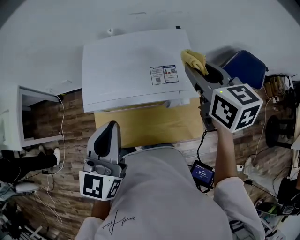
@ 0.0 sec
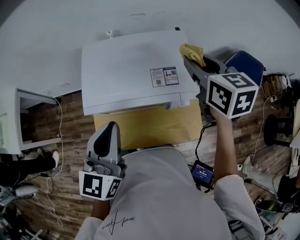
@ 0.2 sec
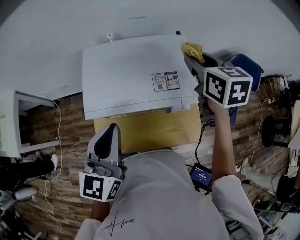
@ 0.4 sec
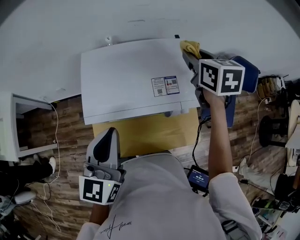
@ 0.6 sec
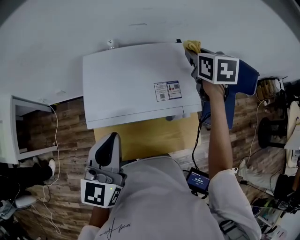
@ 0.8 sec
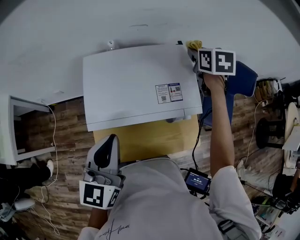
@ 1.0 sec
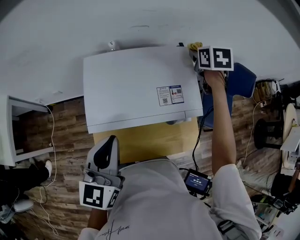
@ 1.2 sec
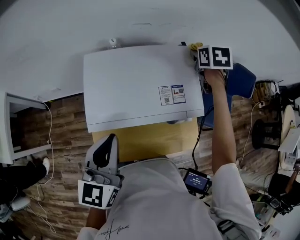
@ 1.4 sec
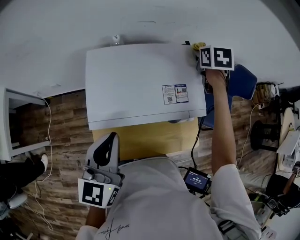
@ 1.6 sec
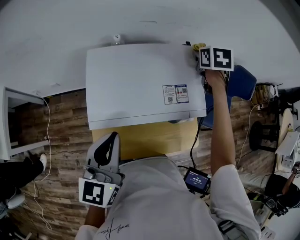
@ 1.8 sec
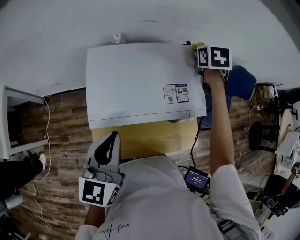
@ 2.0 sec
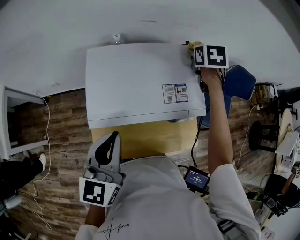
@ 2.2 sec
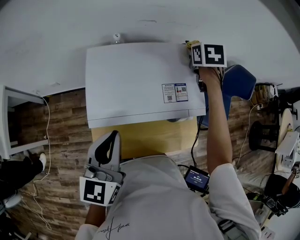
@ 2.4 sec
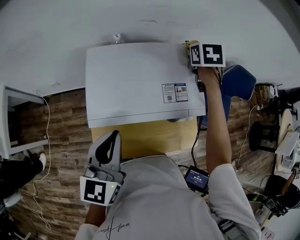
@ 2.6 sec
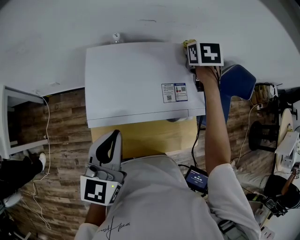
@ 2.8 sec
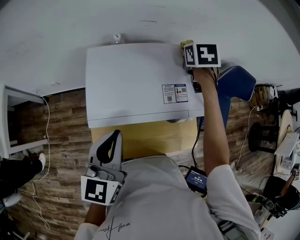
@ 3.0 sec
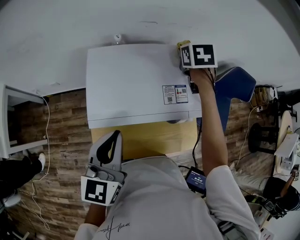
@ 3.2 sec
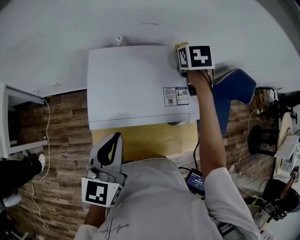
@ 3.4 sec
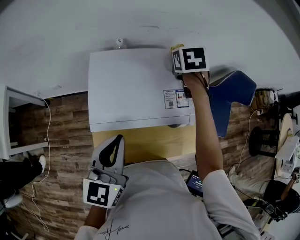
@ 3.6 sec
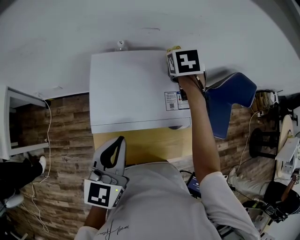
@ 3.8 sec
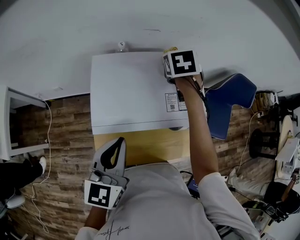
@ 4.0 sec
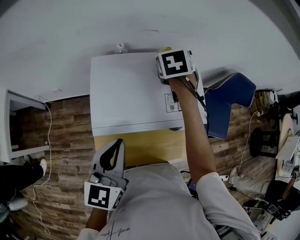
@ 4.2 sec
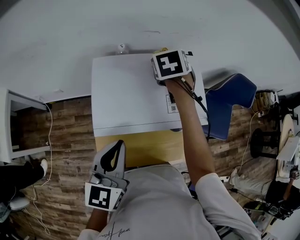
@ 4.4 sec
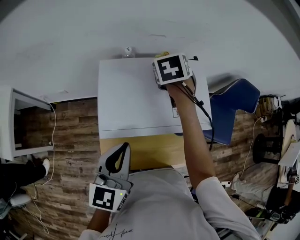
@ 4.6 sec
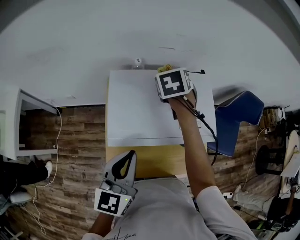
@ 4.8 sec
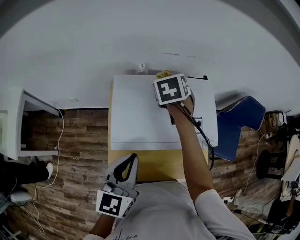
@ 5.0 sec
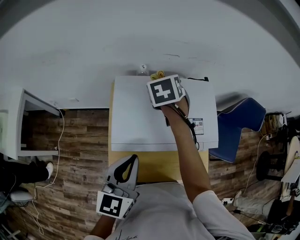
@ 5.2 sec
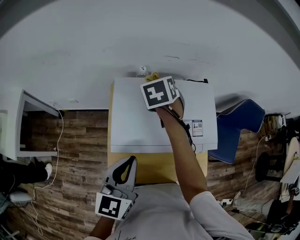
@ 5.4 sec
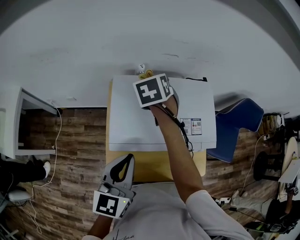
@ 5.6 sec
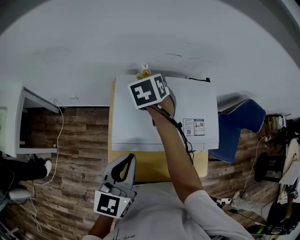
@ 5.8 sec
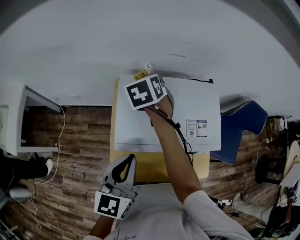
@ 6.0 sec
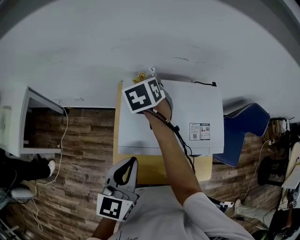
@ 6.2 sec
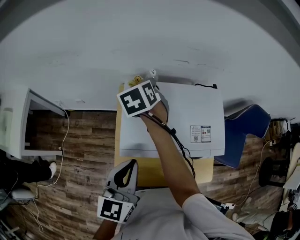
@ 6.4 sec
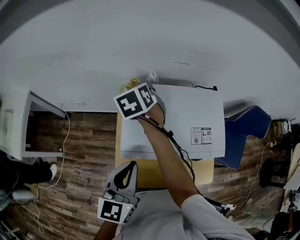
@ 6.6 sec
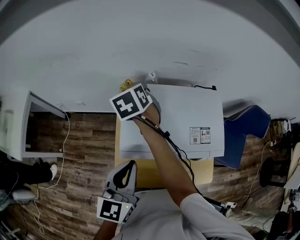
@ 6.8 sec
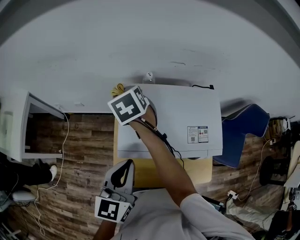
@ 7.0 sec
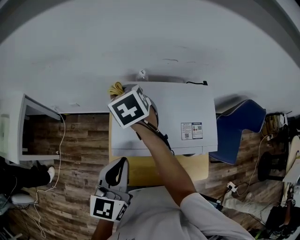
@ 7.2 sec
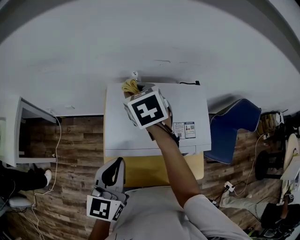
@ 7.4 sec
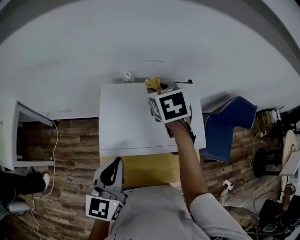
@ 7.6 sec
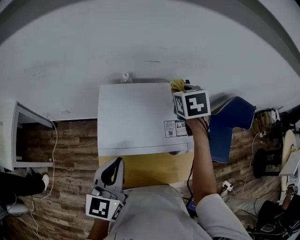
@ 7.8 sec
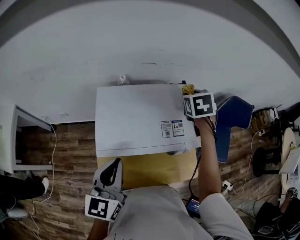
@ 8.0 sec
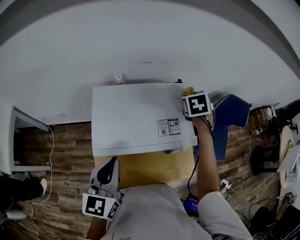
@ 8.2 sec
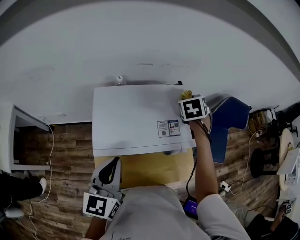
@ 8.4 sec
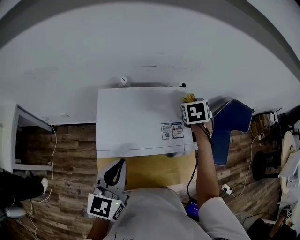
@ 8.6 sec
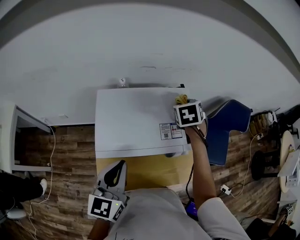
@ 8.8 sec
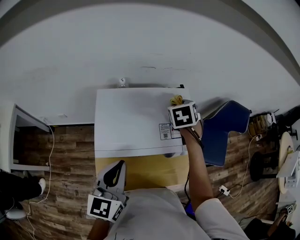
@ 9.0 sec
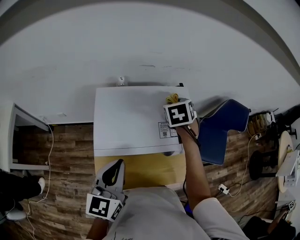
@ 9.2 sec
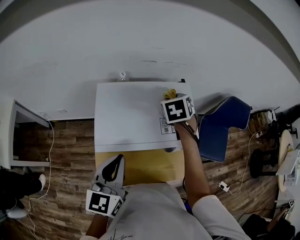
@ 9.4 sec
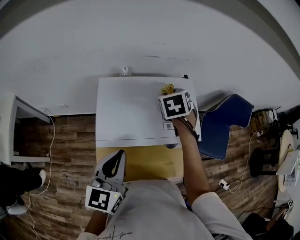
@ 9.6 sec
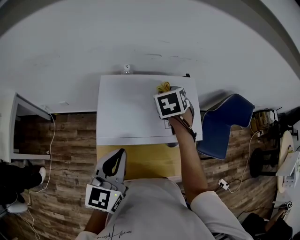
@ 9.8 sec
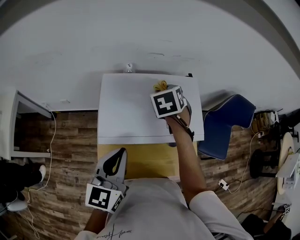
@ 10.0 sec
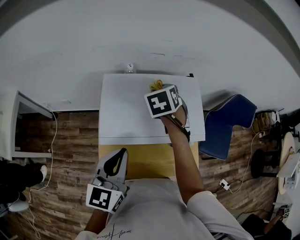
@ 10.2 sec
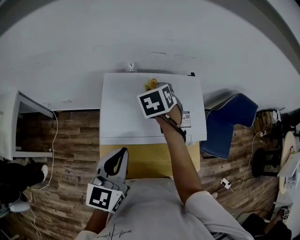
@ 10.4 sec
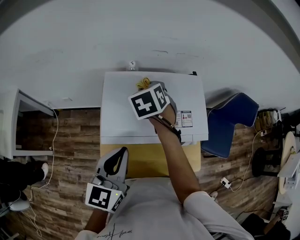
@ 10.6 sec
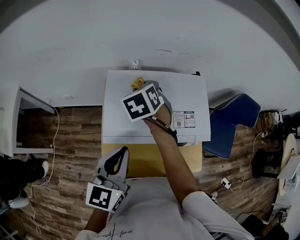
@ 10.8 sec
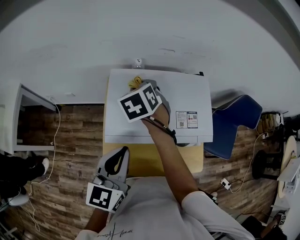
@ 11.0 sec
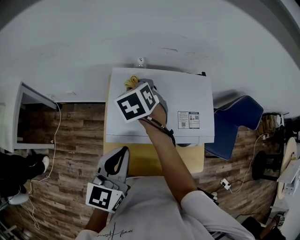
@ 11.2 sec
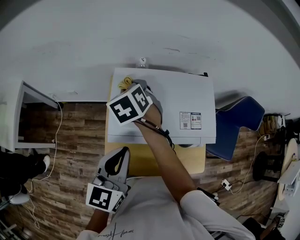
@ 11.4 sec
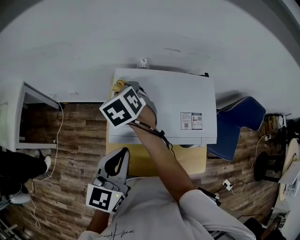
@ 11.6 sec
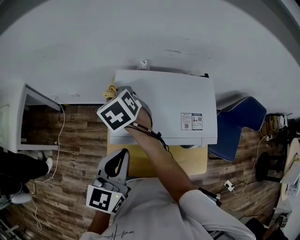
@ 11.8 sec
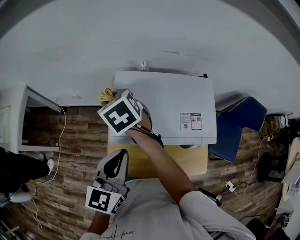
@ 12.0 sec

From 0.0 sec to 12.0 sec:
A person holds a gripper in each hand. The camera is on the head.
From 0.0 sec to 1.6 sec: The right gripper heads forward and downward, covering roughly 20 cm, and rotates approximately 30 degrees; the left gripper is displaced to the left by roughly 5 cm.
From 1.6 sec to 3.0 sec: The right gripper is displaced to the left by roughly 5 cm.
From 3.0 sec to 4.4 sec: The right gripper moves to the left, about 10 cm.
From 4.4 sec to 6.0 sec: The right gripper moves to the left, some 15 cm.
From 6.0 sec to 7.6 sec: The right gripper shifts approximately 15 cm to the right and upward.
From 7.6 sec to 9.0 sec: The right gripper heads to the right, covering about 15 cm, and rotates some 20 degrees.
From 9.0 sec to 10.4 sec: The right gripper heads to the left, covering roughly 15 cm.
From 10.4 sec to 12.0 sec: The right gripper shifts about 20 cm to the left, and rotates some 30 degrees.

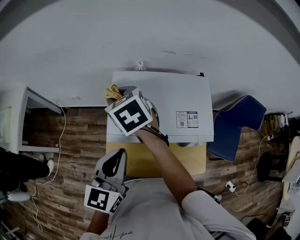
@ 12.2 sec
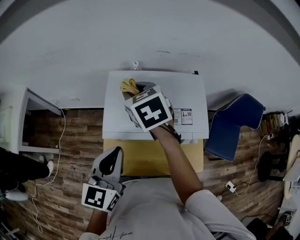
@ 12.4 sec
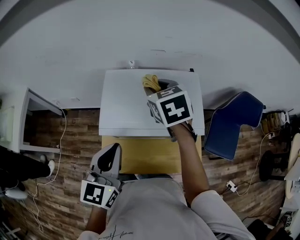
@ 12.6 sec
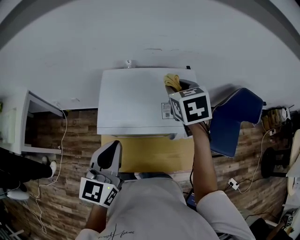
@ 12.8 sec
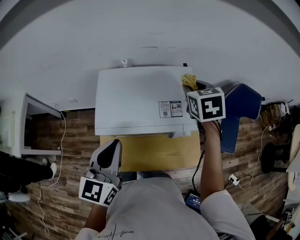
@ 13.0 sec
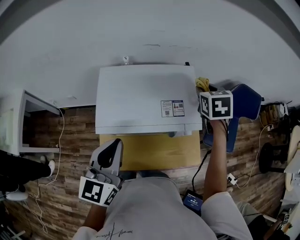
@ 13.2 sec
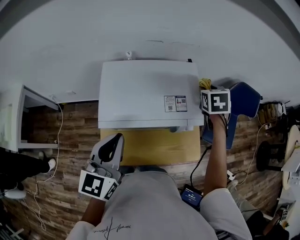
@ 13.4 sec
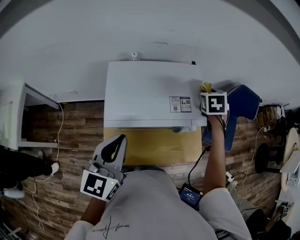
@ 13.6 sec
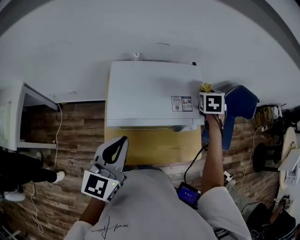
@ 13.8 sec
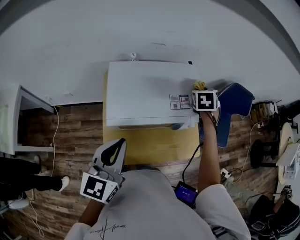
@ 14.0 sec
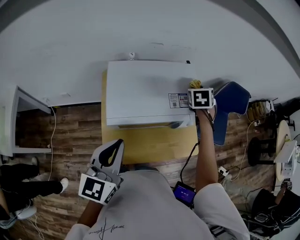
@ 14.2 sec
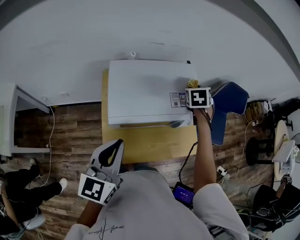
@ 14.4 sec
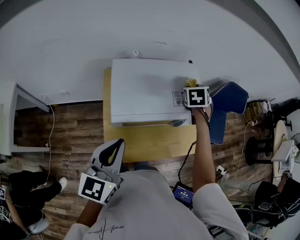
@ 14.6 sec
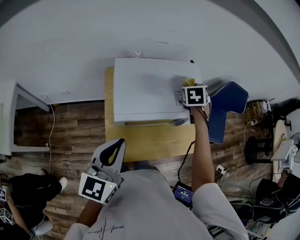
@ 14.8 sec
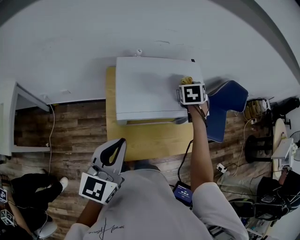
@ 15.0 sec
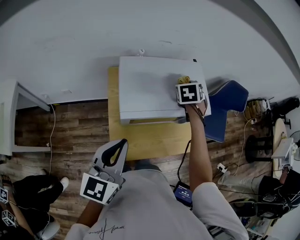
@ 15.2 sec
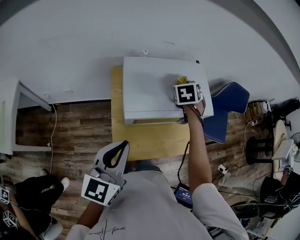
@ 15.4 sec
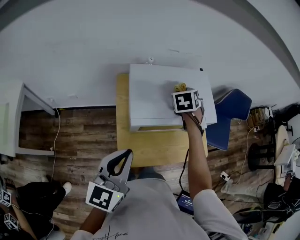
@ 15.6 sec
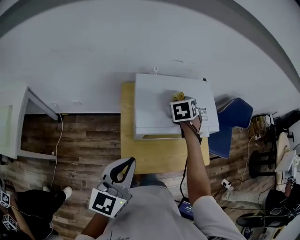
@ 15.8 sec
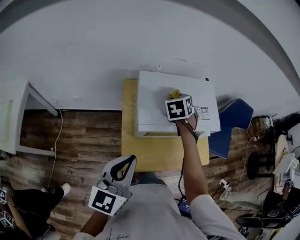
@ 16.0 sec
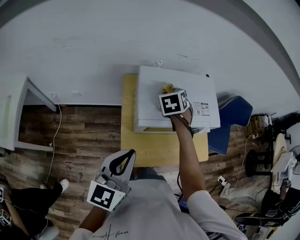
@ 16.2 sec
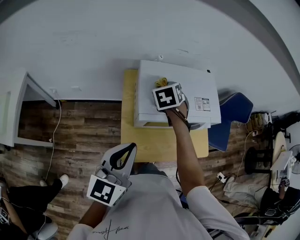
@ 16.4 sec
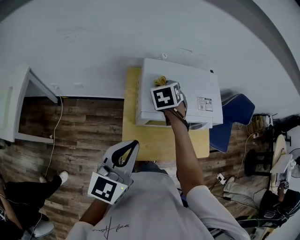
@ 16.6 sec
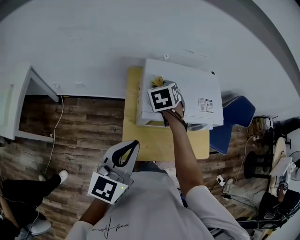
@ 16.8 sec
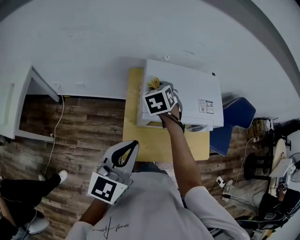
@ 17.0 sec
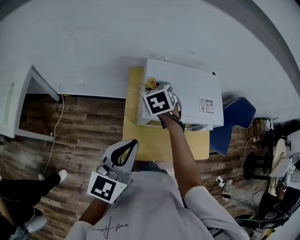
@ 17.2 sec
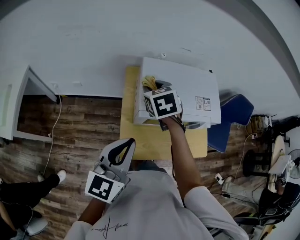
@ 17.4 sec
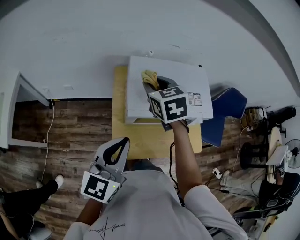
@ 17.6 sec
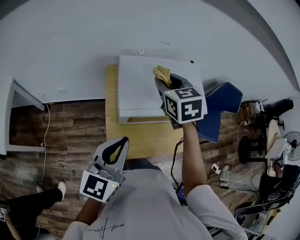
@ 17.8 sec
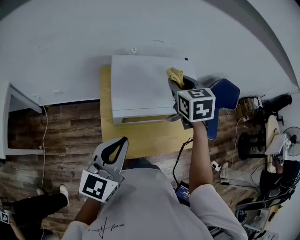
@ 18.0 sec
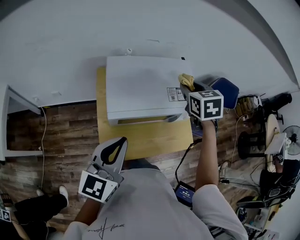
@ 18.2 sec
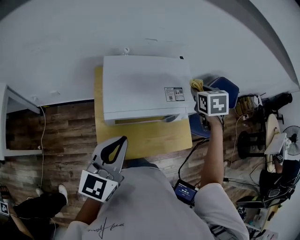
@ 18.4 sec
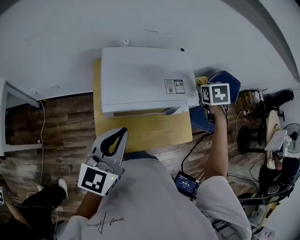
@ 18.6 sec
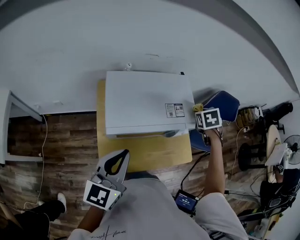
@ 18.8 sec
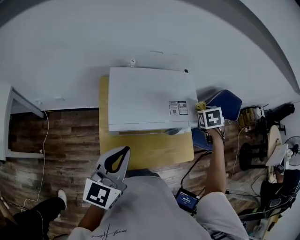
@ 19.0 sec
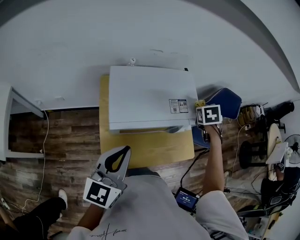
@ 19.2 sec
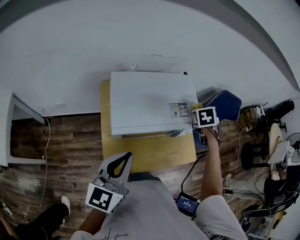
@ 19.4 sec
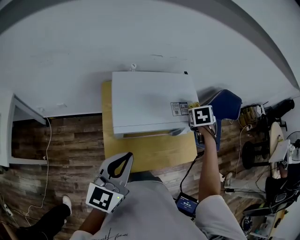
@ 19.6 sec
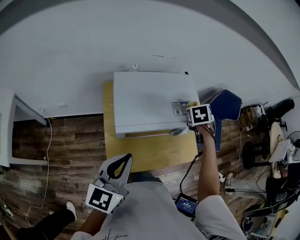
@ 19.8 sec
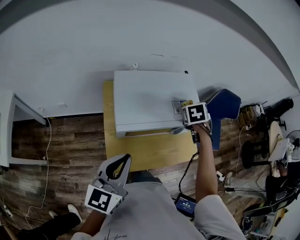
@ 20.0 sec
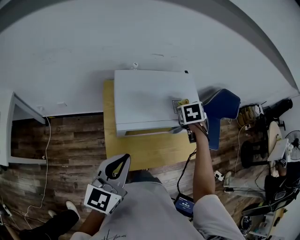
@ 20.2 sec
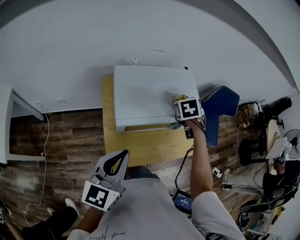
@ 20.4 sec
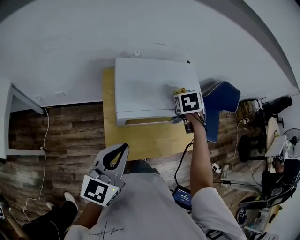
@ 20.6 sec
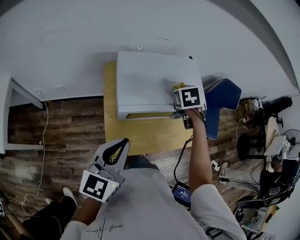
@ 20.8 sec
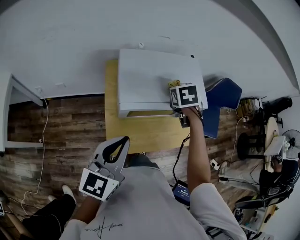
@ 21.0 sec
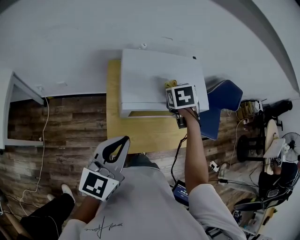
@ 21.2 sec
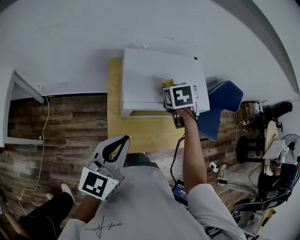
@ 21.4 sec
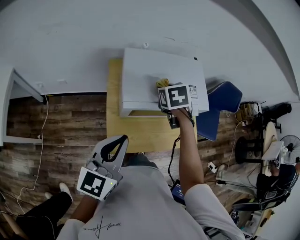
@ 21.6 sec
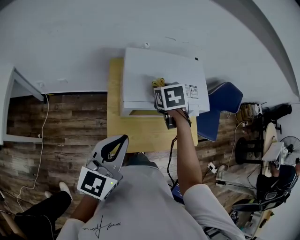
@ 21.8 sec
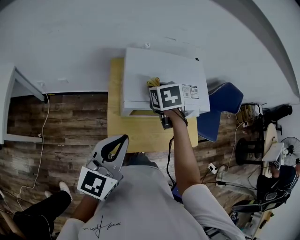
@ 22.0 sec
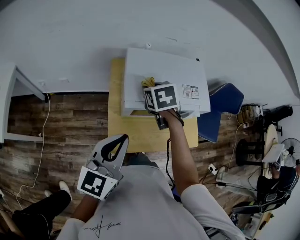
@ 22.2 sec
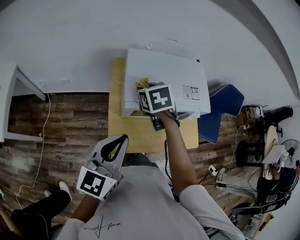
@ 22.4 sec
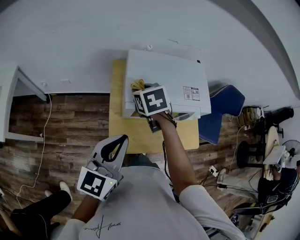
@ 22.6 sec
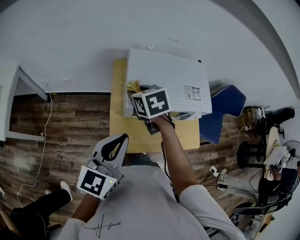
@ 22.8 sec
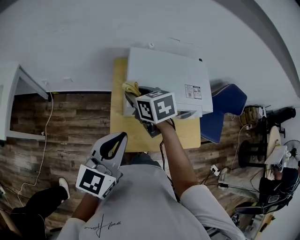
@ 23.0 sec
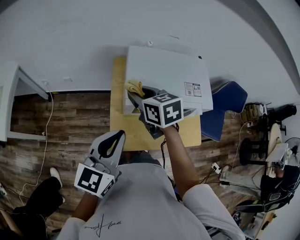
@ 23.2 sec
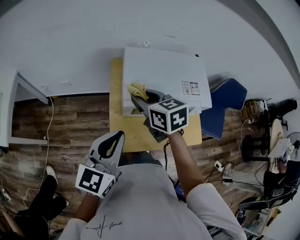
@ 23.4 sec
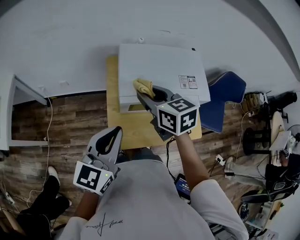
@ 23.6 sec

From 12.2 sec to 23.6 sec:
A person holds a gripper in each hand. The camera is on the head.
From 12.2 sec to 13.6 sec: The right gripper shifts by approximately 40 cm, and changes its angle by about 50 degrees.
From 13.6 sec to 15.0 sec: The left gripper shifts about 10 cm backward. The right gripper heads to the left and backward, covering roughly 10 cm.
From 15.0 sec to 16.4 sec: The right gripper travels to the left and backward by some 20 cm. The left gripper shifts by about 5 cm.
From 16.4 sec to 17.8 sec: The right gripper moves upward, roughly 10 cm, and swivels about 20 degrees.
From 17.8 sec to 19.4 sec: The right gripper goes some 30 cm to the right and downward, and turns by roughly 40 degrees; the left gripper ends up approximately 5 cm from where it was.
From 19.4 sec to 20.8 sec: The left gripper moves approximately 5 cm, while the right gripper is displaced to the left and backward by roughly 15 cm.
From 20.8 sec to 22.2 sec: The right gripper heads to the left, covering about 15 cm.
From 22.2 sec to 23.6 sec: The right gripper shifts roughly 10 cm backward and upward, reaches approximately 10 cm to the left, then returns, and swivels about 30 degrees.
